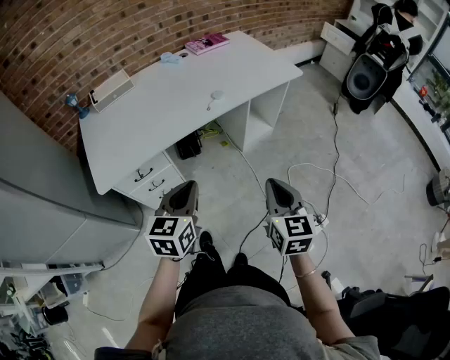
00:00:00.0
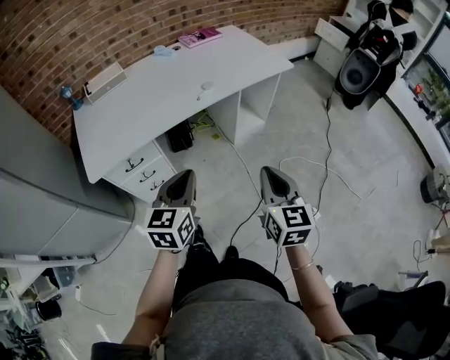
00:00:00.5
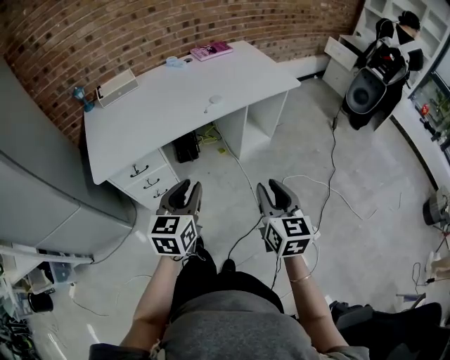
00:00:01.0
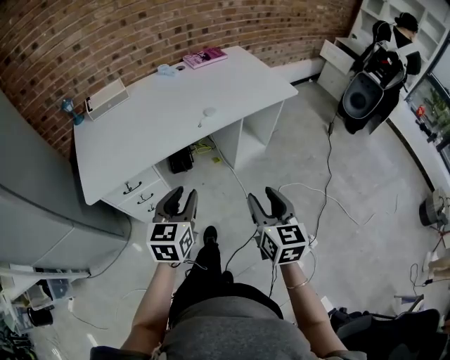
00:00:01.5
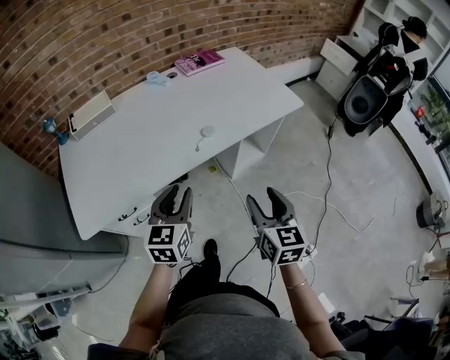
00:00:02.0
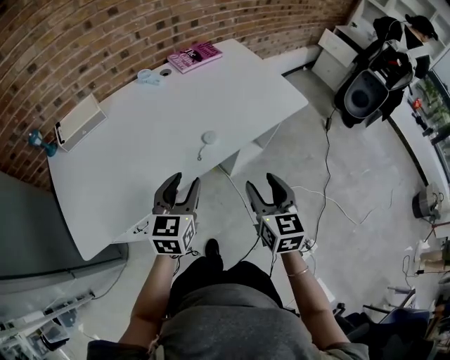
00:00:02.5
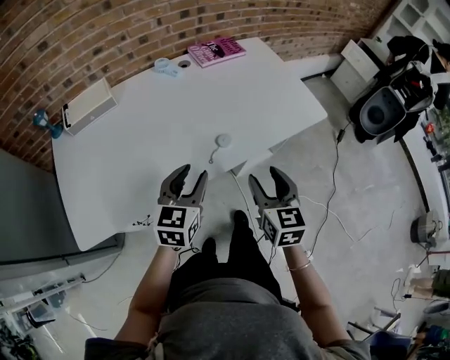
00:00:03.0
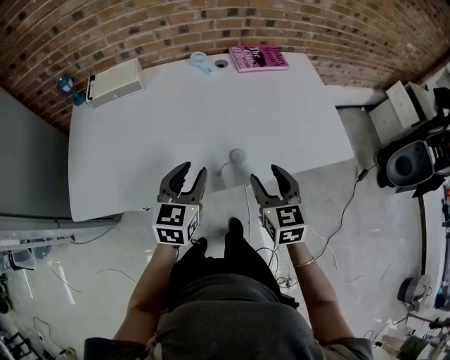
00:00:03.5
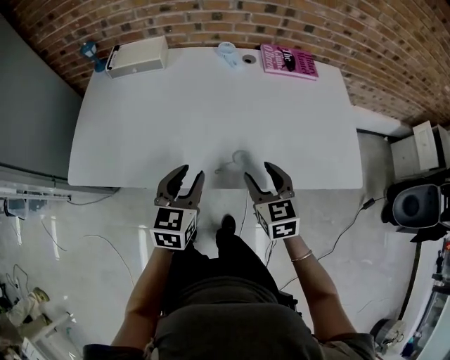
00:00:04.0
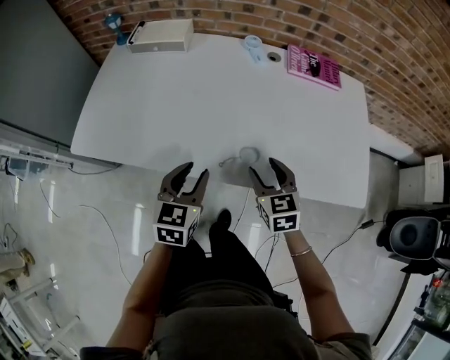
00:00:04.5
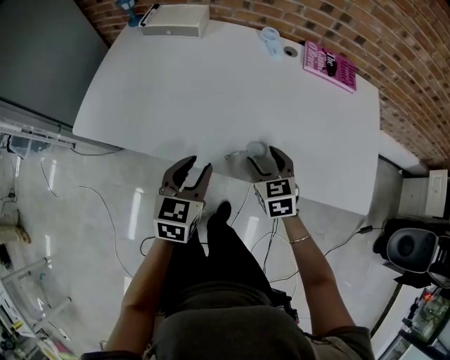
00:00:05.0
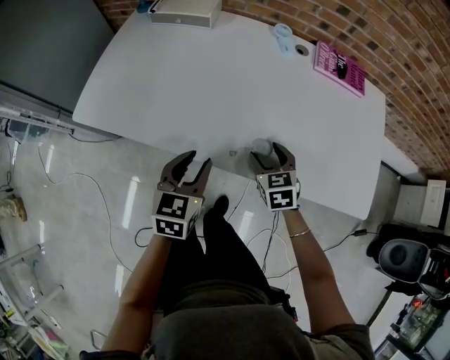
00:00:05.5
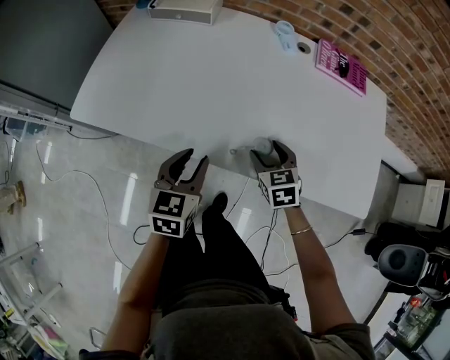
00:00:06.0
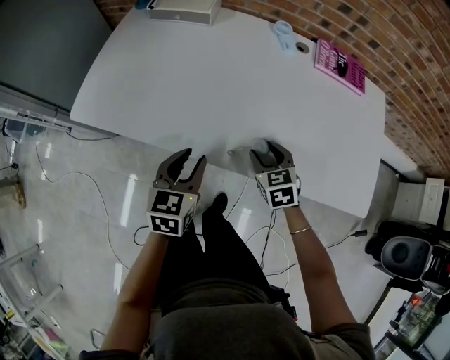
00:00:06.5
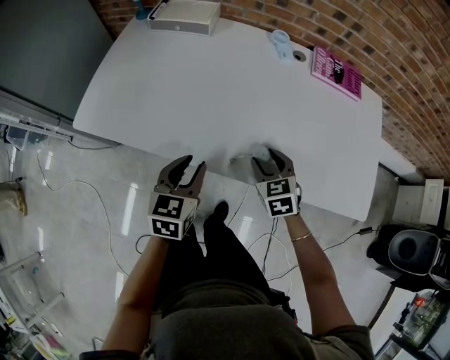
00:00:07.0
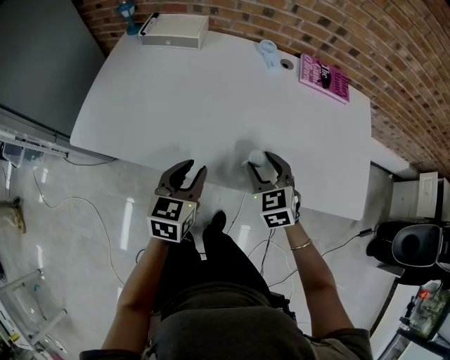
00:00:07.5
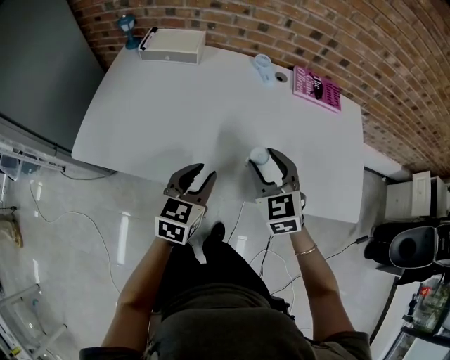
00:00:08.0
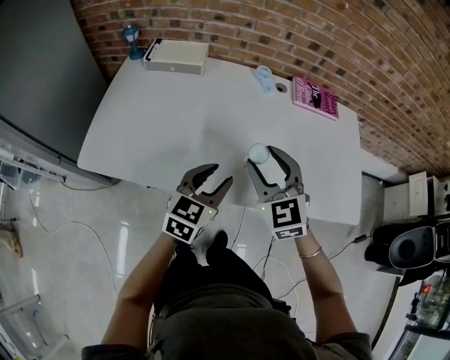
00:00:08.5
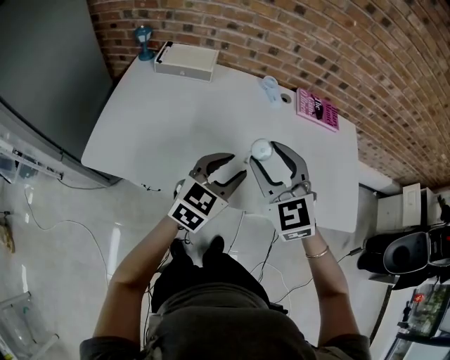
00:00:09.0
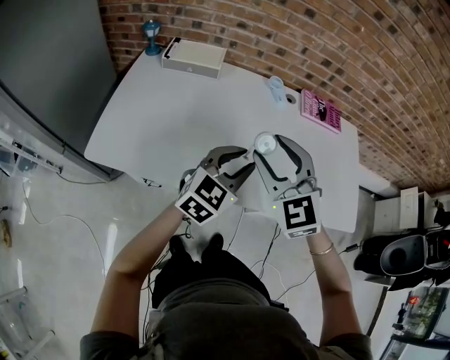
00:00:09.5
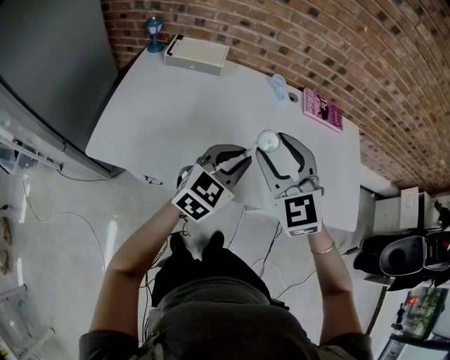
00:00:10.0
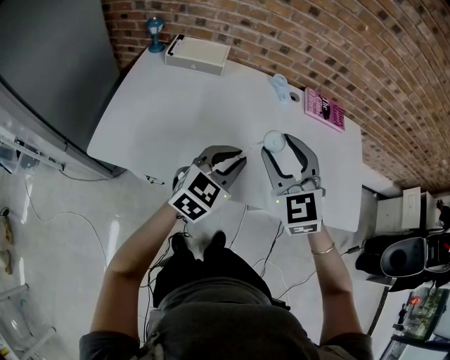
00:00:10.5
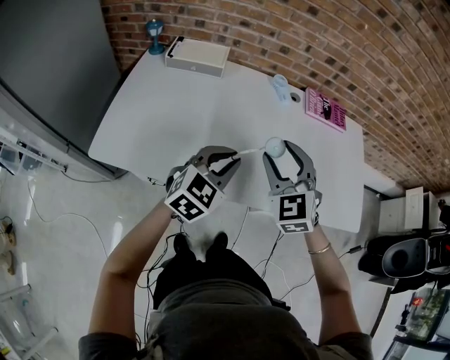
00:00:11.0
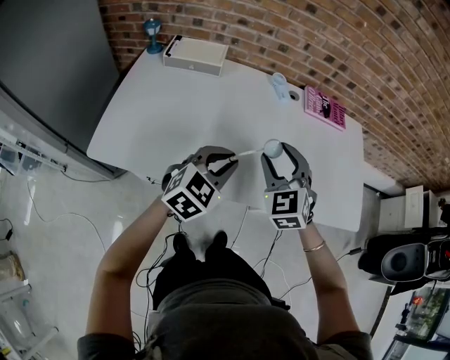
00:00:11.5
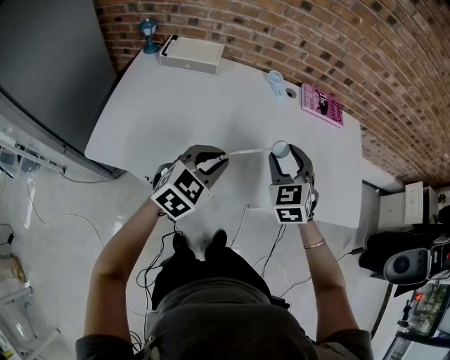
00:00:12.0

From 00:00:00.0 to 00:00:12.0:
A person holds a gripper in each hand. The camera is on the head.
From 00:00:00.0 to 00:00:02.0: The two grippers go roughly 20 cm forward. The left gripper opens its fingers. Meanwhile the right gripper opens its fingers.
From 00:00:02.0 to 00:00:04.0: The left gripper shifts by approximately 15 cm, and swivels roughly 30 degrees; the right gripper moves approximately 30 cm, and turns by some 50 degrees.
From 00:00:04.0 to 00:00:06.0: The right gripper travels downward and forward by roughly 10 cm. The left gripper ends up roughly 5 cm from where it was.
From 00:00:06.0 to 00:00:08.0: The right gripper moves upward, about 15 cm, and changes its angle by approximately 20 degrees.
From 00:00:08.0 to 00:00:10.0: The left gripper goes roughly 10 cm upward, and changes its angle by approximately 30 degrees. Meanwhile the right gripper is displaced upward and to the left by about 15 cm.
From 00:00:10.0 to 00:00:12.0: The right gripper shifts some 15 cm downward, to the right and forward, and swivels some 20 degrees.

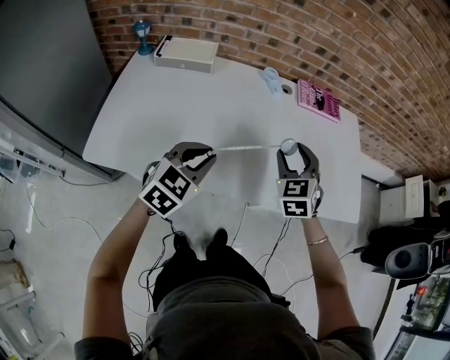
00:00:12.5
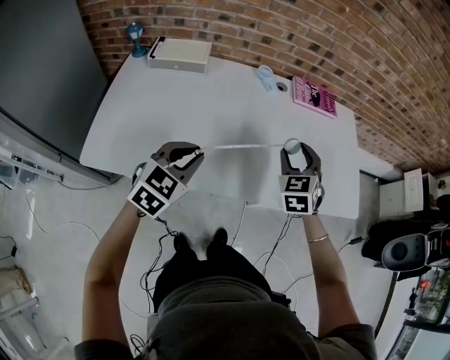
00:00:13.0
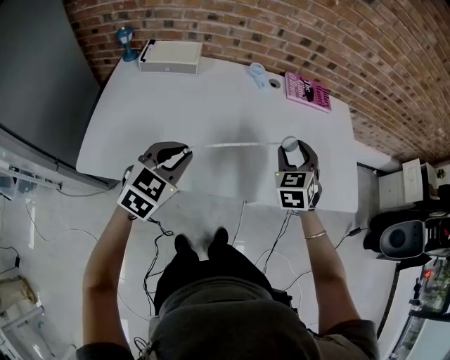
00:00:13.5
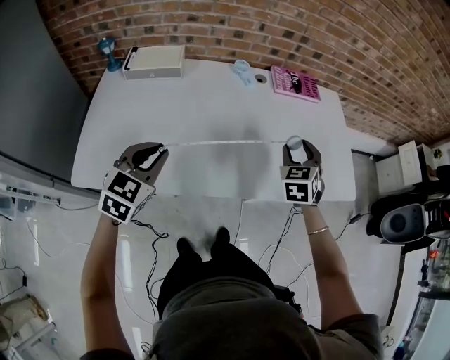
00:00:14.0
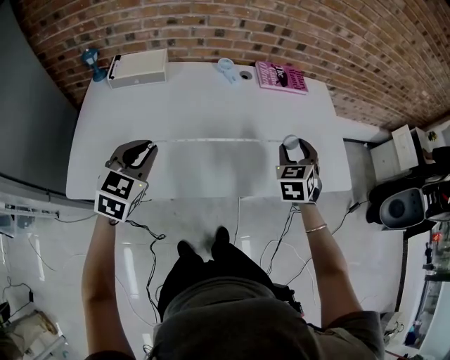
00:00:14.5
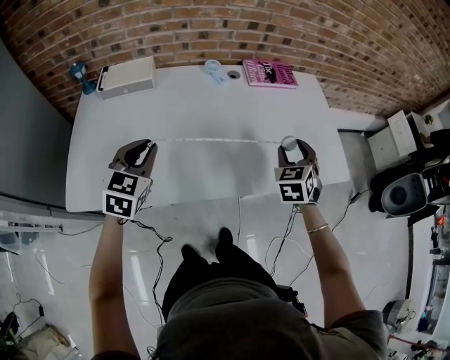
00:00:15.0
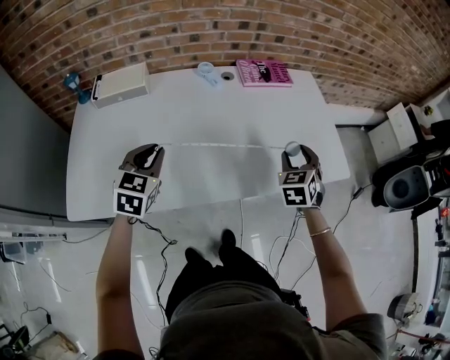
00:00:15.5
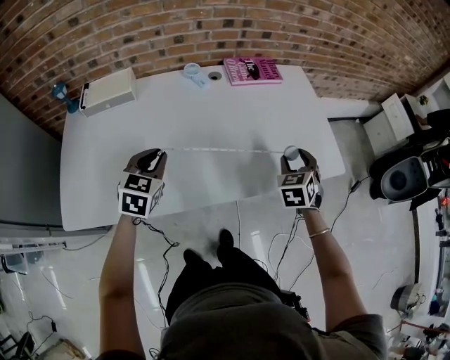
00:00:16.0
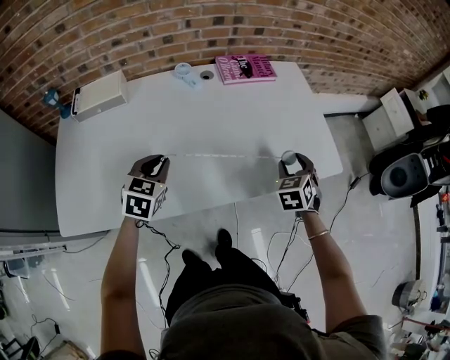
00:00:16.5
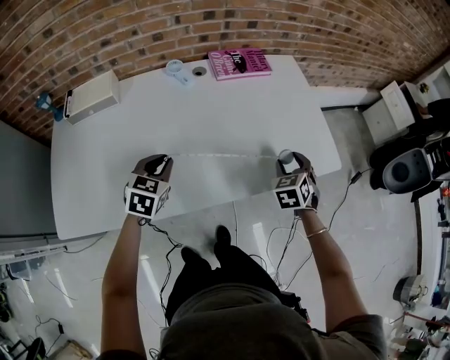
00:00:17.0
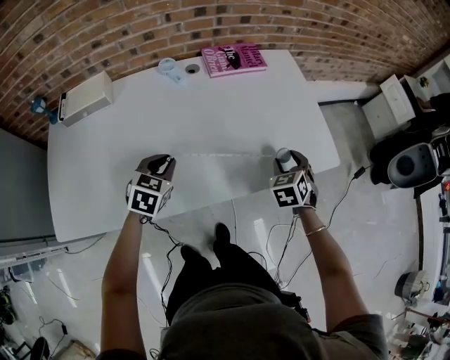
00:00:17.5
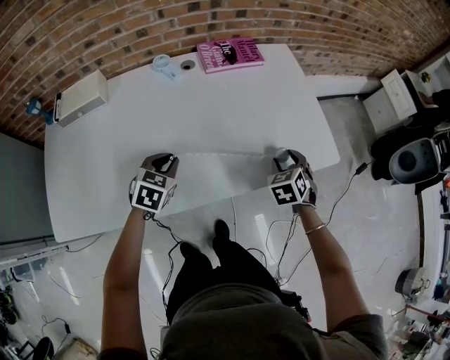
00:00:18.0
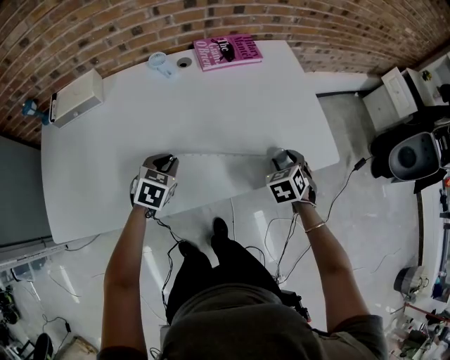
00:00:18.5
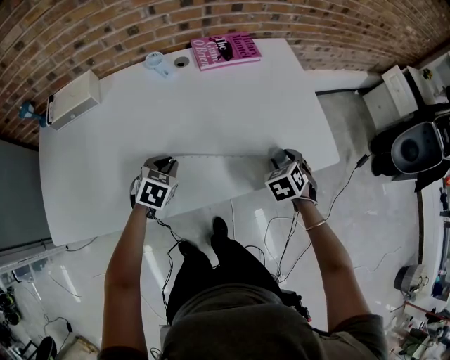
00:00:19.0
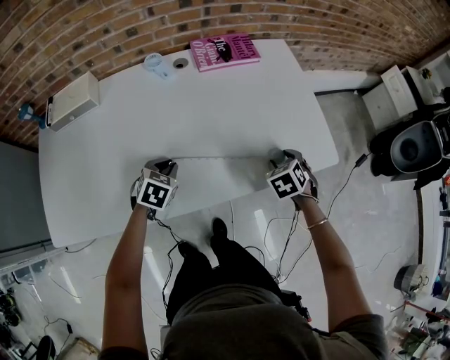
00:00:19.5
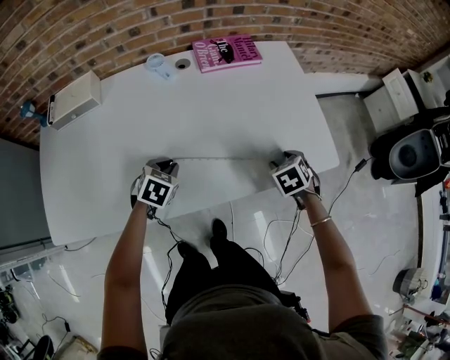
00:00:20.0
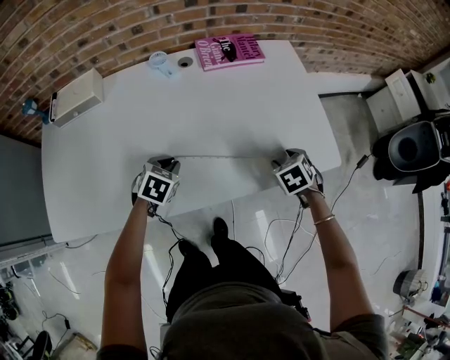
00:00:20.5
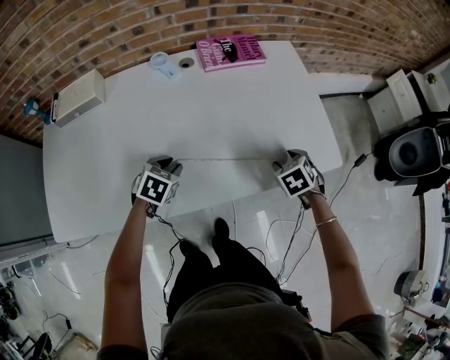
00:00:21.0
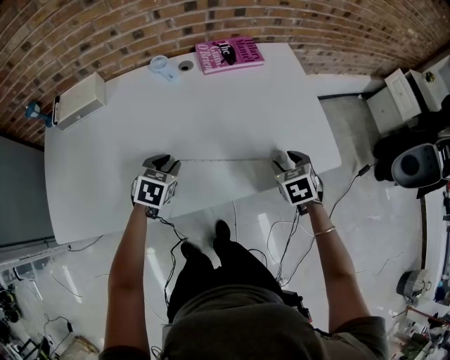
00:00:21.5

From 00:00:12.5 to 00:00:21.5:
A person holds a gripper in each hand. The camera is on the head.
From 00:00:12.5 to 00:00:14.5: The right gripper travels to the right by some 10 cm, and rotates some 20 degrees. Meanwhile the left gripper is displaced to the left by about 10 cm.
From 00:00:14.5 to 00:00:17.0: The right gripper goes roughly 15 cm to the right and downward; the left gripper moves to the right, forward and downward, approximately 20 cm.
From 00:00:17.0 to 00:00:19.5: The left gripper shifts approximately 10 cm downward and to the right; the right gripper is displaced downward by roughly 5 cm.
From 00:00:19.5 to 00:00:21.5: The grippers move only a little.

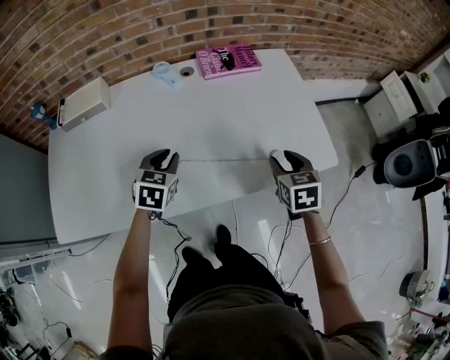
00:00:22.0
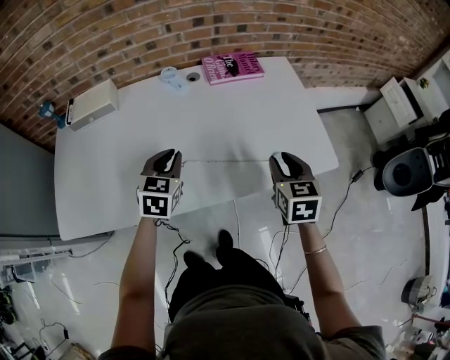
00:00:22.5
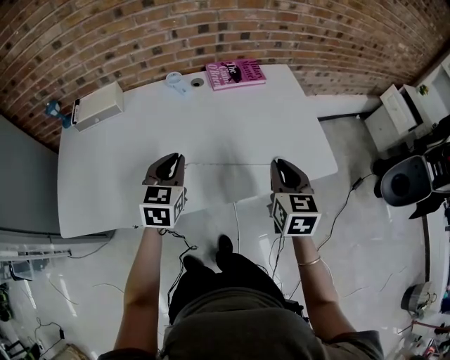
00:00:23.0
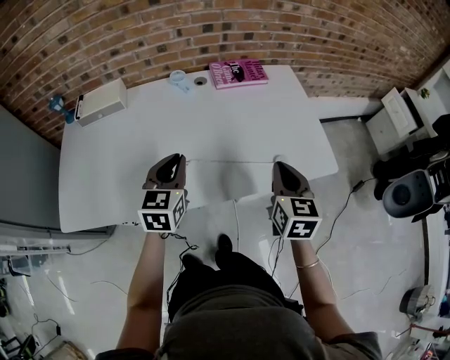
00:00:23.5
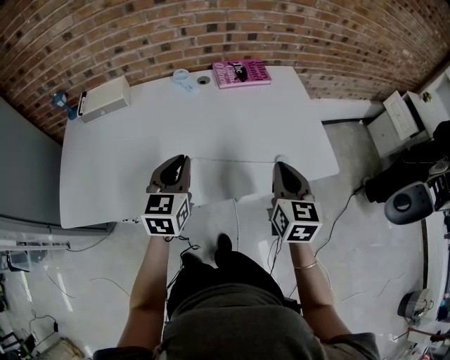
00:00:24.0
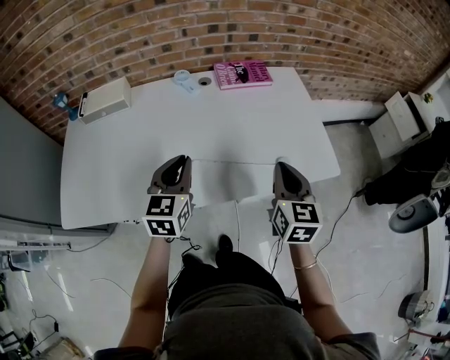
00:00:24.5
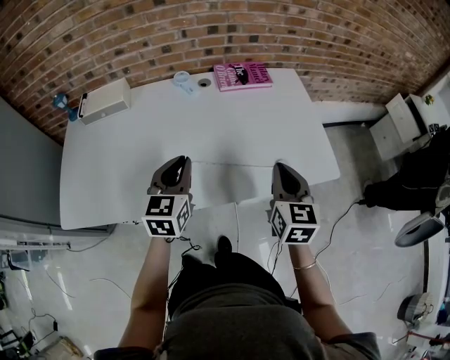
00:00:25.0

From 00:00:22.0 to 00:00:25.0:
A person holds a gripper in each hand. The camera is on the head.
From 00:00:22.0 to 00:00:23.5: The two grippers go roughly 10 cm upward and backward. The left gripper swivels some 20 degrees. Meanwhile the right gripper turns by some 20 degrees, and closes.
From 00:00:23.5 to 00:00:25.0: There are only small adjustments of the grippers.

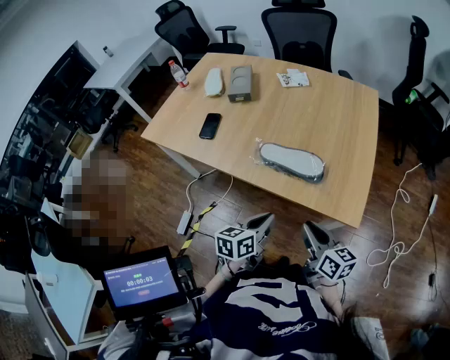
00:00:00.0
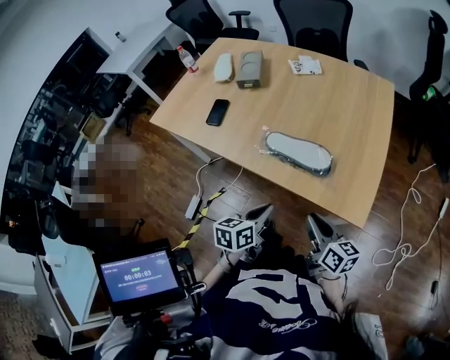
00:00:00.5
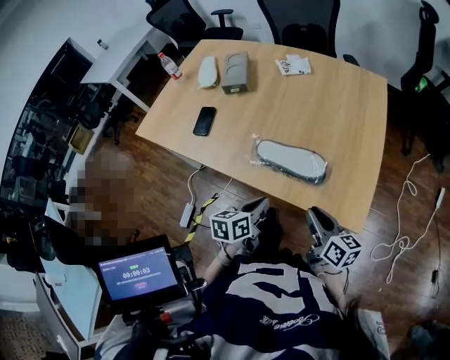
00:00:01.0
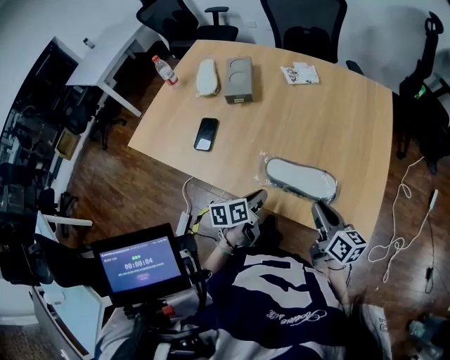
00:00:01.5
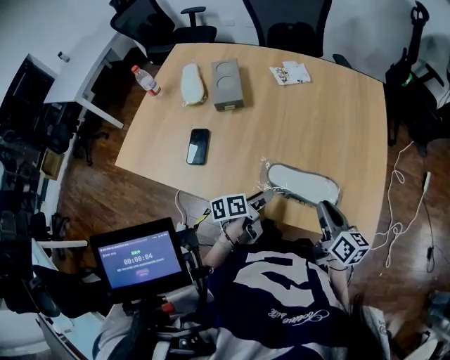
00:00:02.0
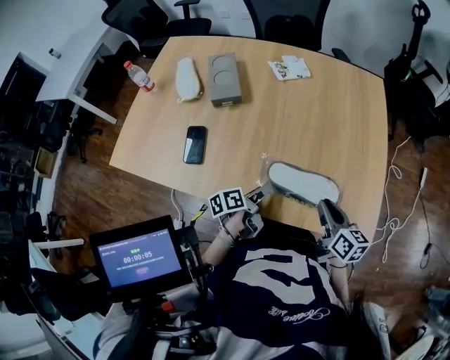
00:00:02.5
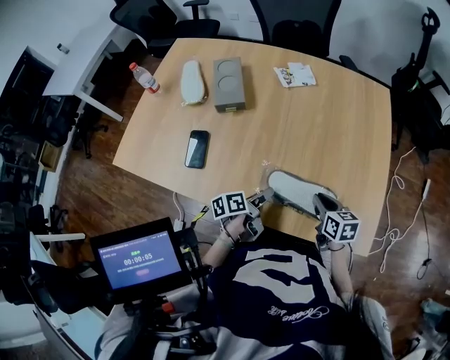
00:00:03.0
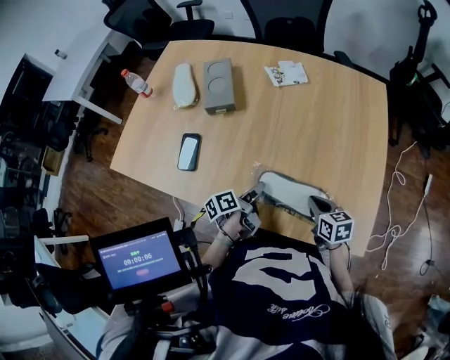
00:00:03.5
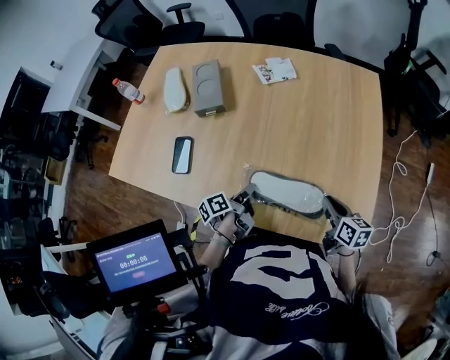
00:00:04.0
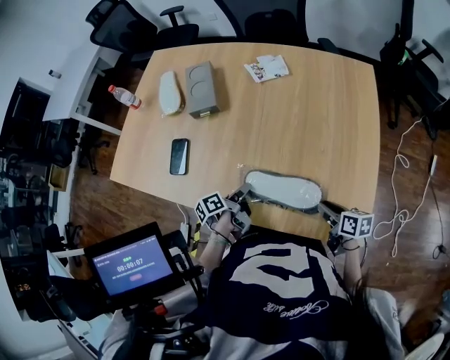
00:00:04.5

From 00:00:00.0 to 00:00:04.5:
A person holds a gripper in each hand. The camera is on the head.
From 00:00:00.0 to 00:00:02.0: The left gripper shifts roughly 25 cm forward, to the left and downward, turns by roughly 30 degrees, and opens. Meanwhile the right gripper heads forward, covering some 20 cm.
From 00:00:02.0 to 00:00:04.5: The right gripper heads downward and to the right, covering roughly 15 cm, and swivels about 30 degrees. Meanwhile the left gripper ends up roughly 5 cm from where it was, changes its angle by approximately 20 degrees, and closes up.
